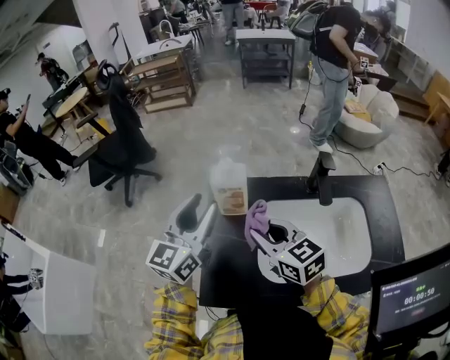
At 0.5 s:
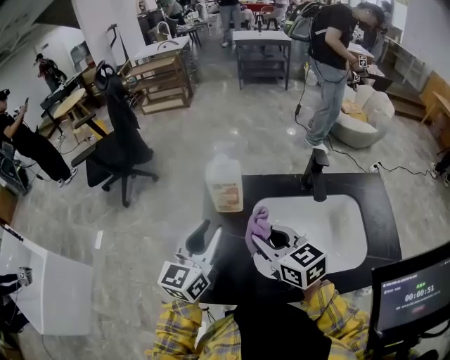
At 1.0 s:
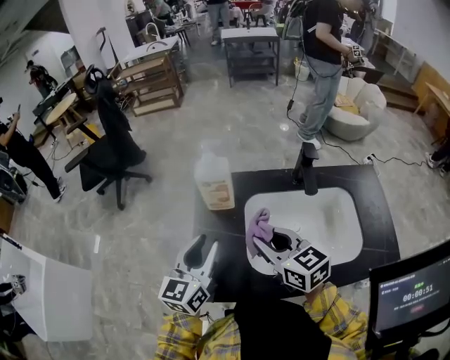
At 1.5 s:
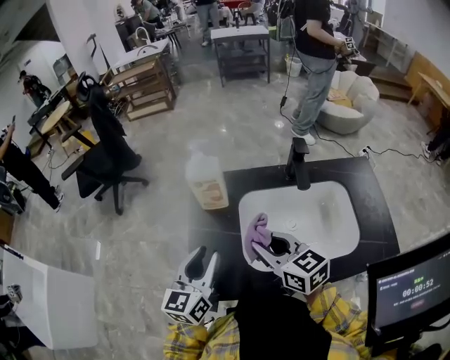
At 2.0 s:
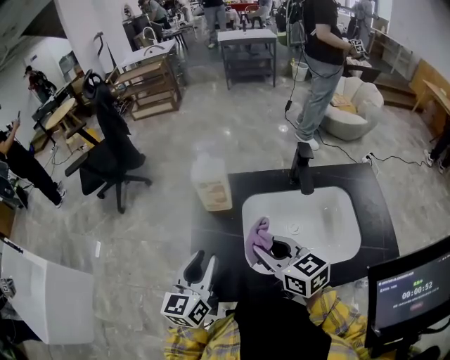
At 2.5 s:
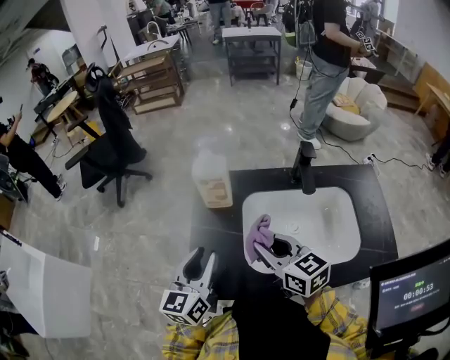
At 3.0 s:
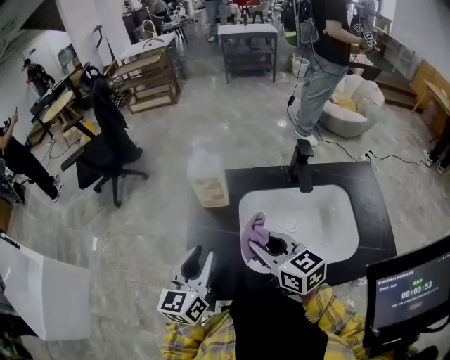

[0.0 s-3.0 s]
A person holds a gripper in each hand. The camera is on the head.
0.0 to 1.5 s: The right gripper is displaced backward by approximately 10 cm, while the left gripper goes some 15 cm backward and downward.
1.5 to 3.0 s: Neither gripper changes place.

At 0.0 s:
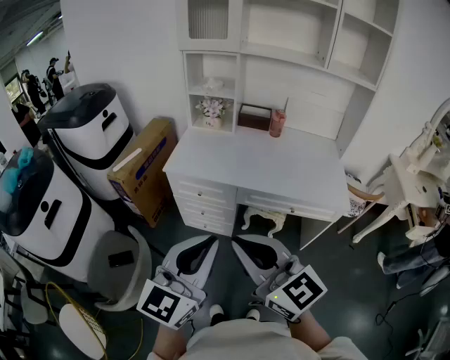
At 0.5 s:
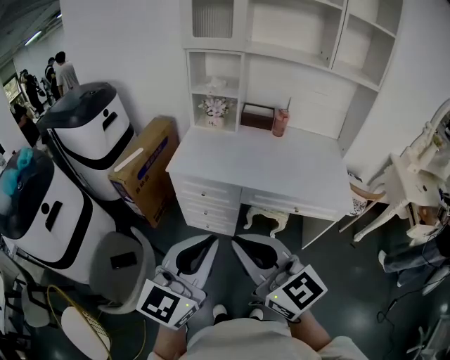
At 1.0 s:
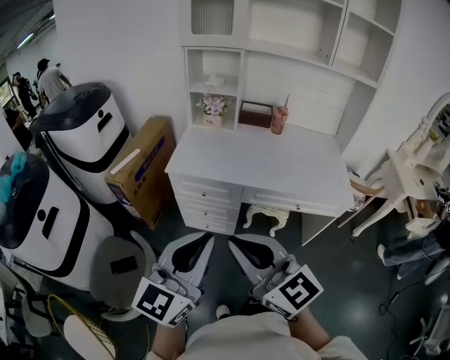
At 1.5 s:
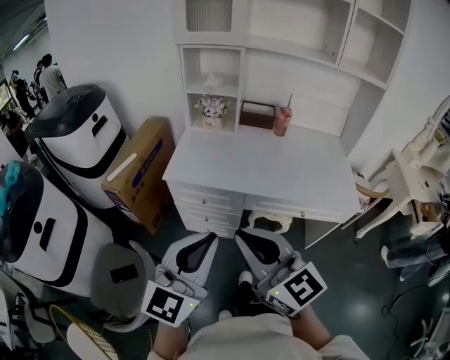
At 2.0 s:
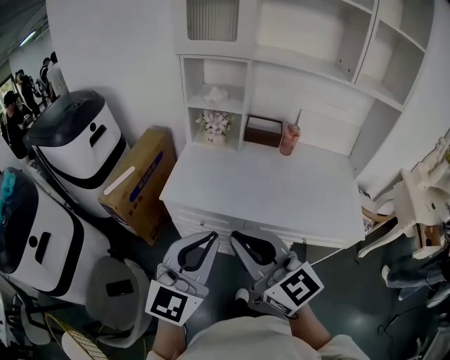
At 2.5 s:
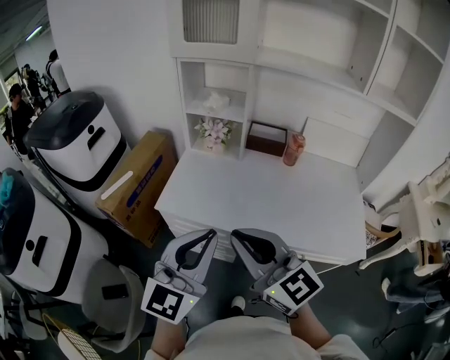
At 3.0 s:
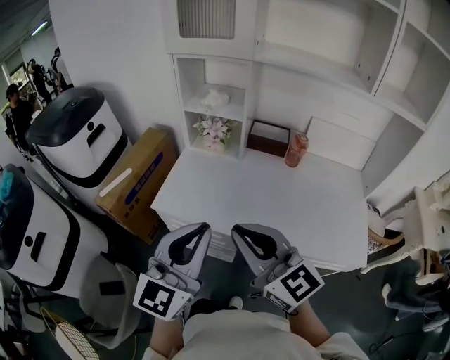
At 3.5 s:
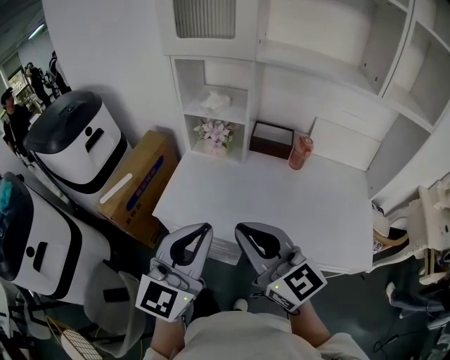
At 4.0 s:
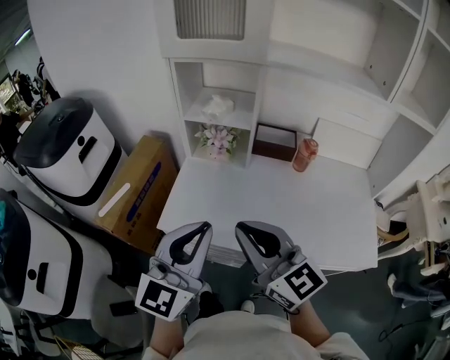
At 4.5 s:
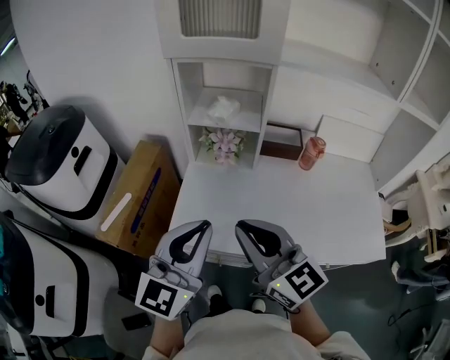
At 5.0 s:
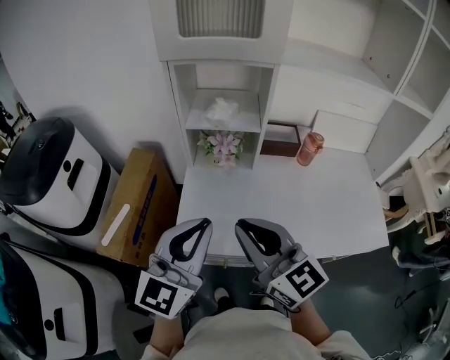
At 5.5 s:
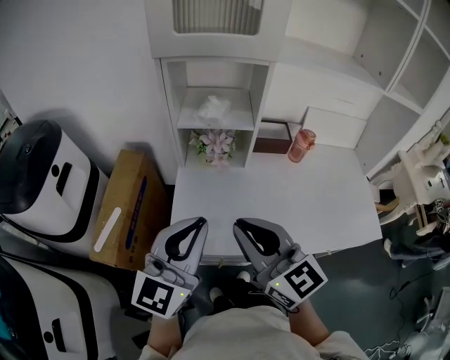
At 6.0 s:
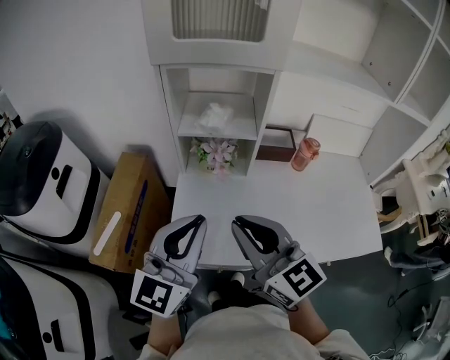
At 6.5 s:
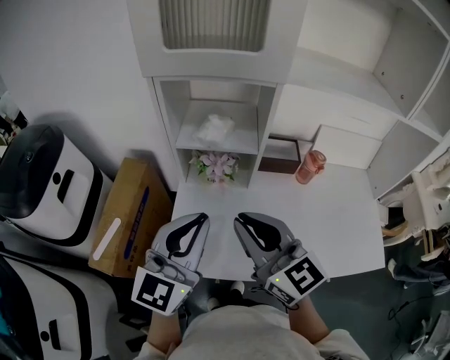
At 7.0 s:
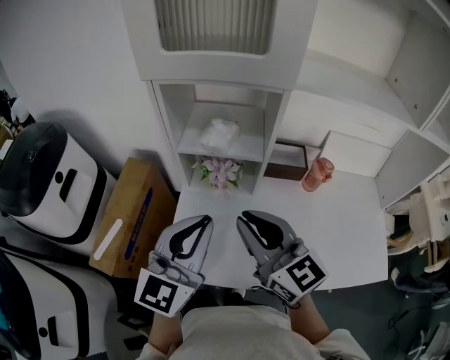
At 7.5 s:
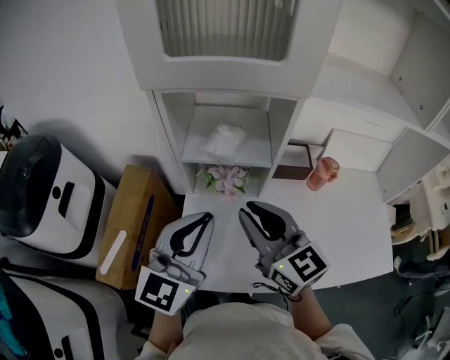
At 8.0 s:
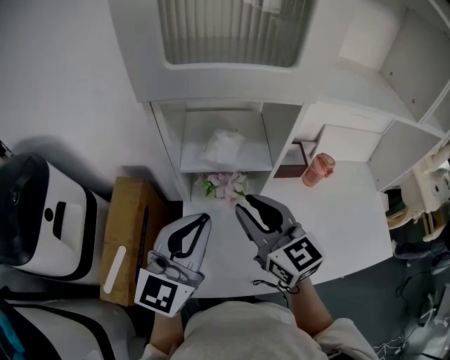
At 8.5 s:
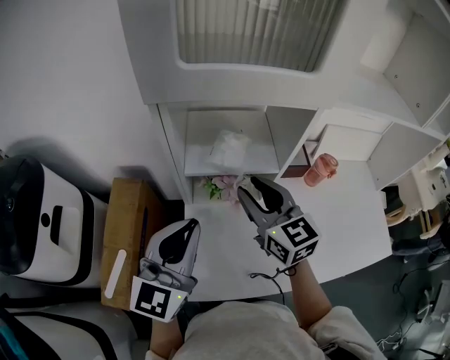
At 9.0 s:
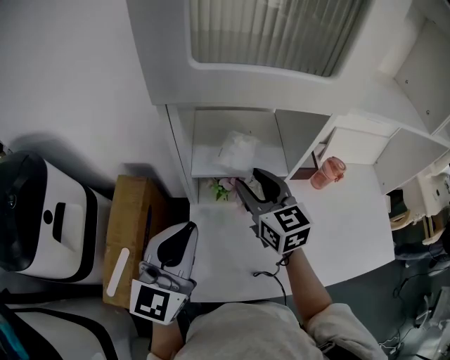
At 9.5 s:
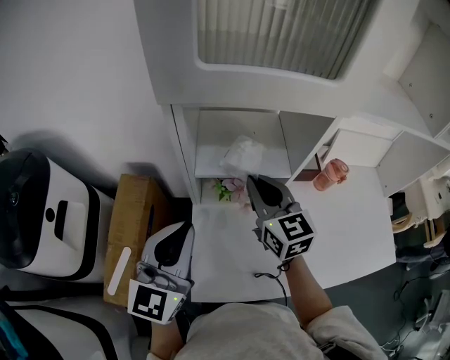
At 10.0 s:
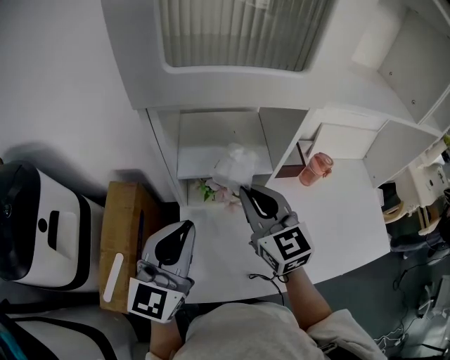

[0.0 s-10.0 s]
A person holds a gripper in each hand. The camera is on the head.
0.0 to 2.0 s: The two grippers go some 20 cm forward.
2.0 to 4.0 s: Both grippers travel together forward, approximately 20 cm.
4.0 to 6.0 s: Both grippers move forward and to the left, some 15 cm.
6.0 to 8.0 s: Both grippers travel together forward, about 15 cm.
8.0 to 10.0 s: The right gripper travels forward by some 5 cm, and closes.

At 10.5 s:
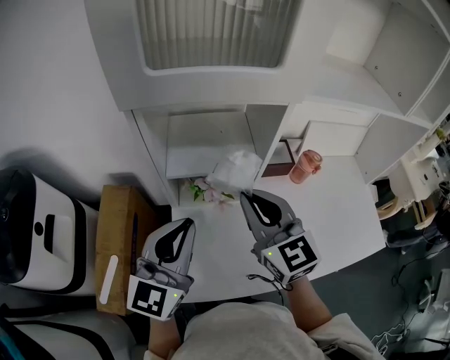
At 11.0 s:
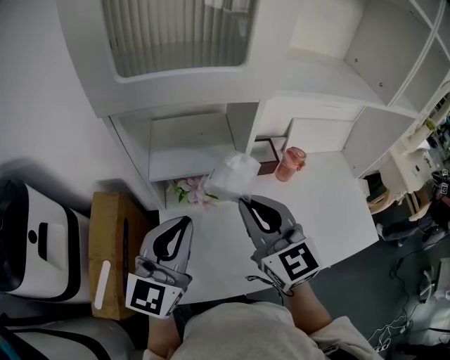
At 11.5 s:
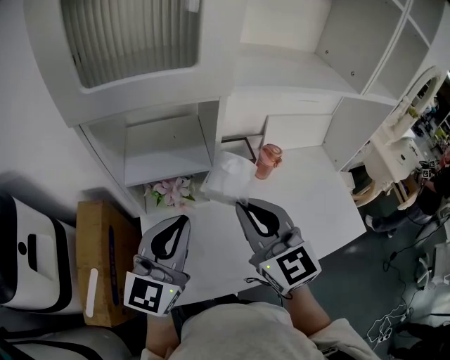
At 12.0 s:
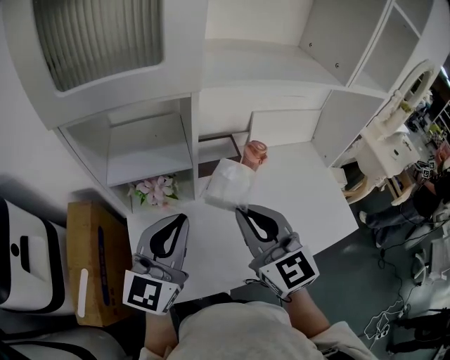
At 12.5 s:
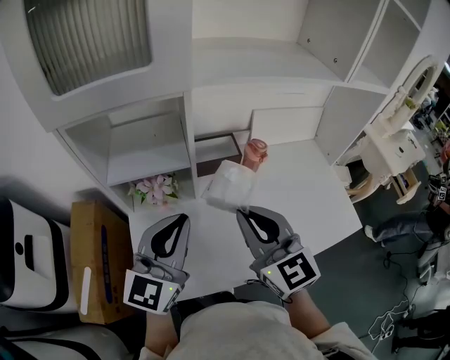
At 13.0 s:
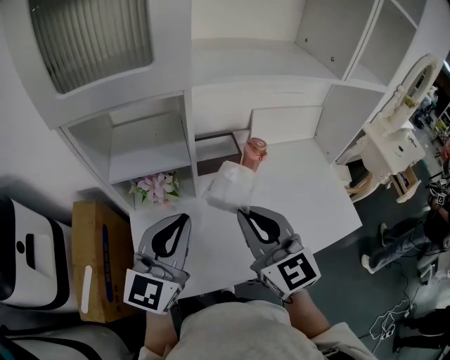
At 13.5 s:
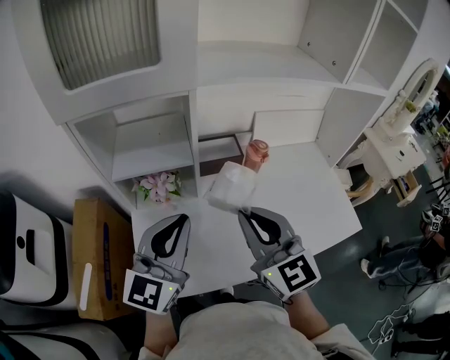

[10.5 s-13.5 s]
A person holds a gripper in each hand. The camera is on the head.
10.5 to 12.0 s: The right gripper heads to the right and backward, covering about 15 cm; the left gripper is displaced to the right by about 15 cm.
12.0 to 13.5 s: The grippers make only small movements.

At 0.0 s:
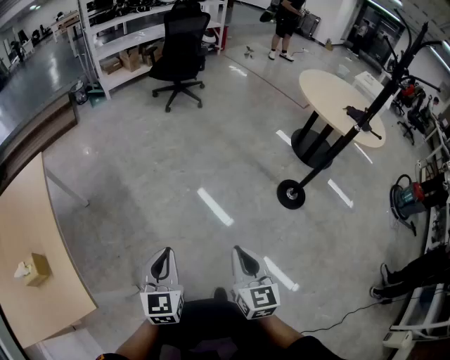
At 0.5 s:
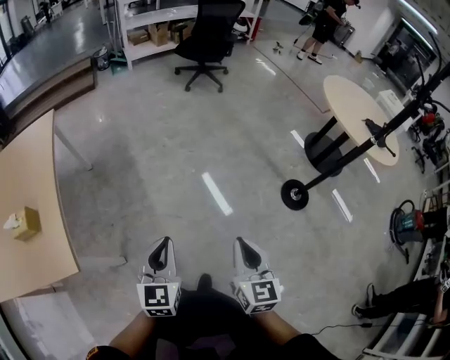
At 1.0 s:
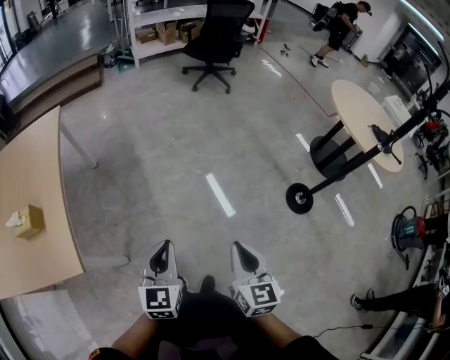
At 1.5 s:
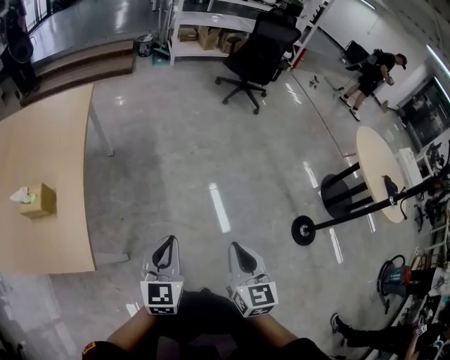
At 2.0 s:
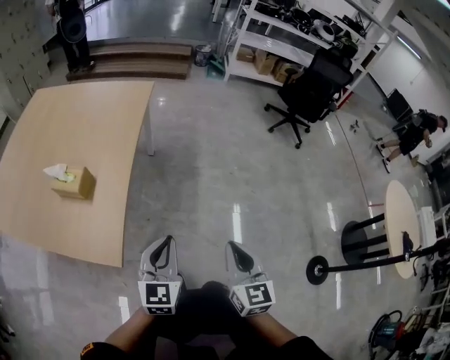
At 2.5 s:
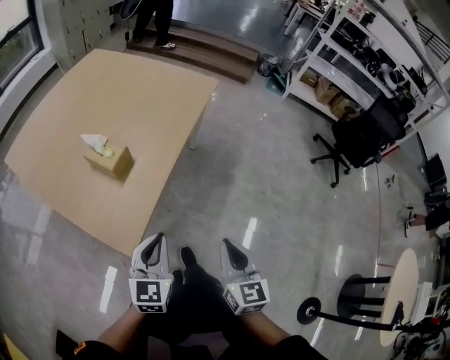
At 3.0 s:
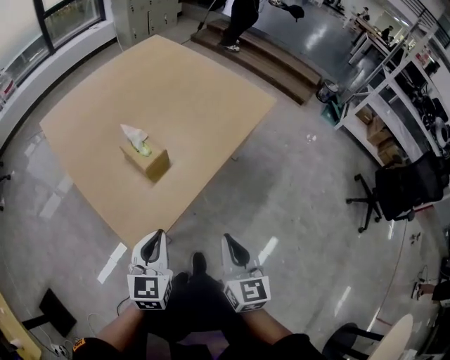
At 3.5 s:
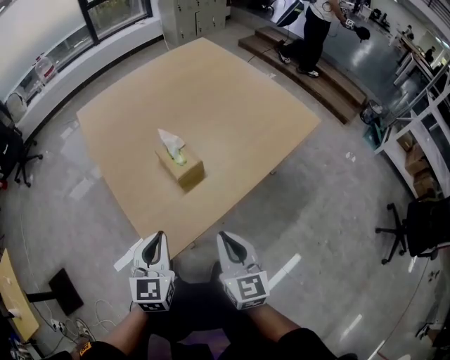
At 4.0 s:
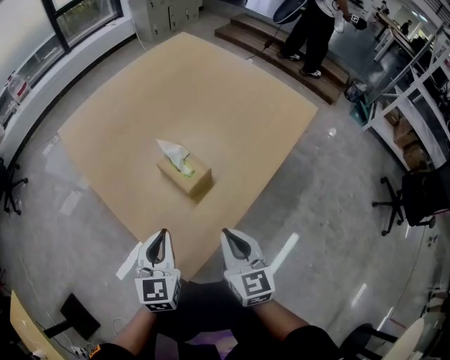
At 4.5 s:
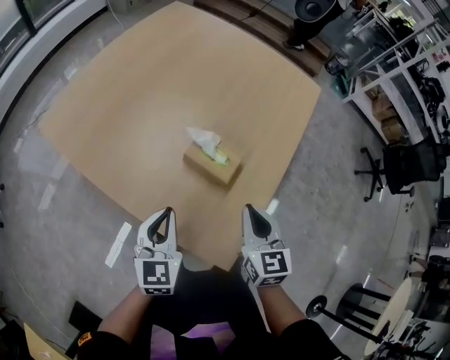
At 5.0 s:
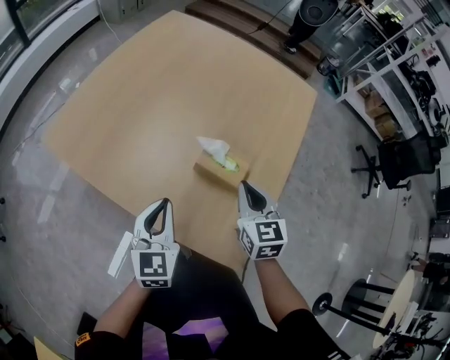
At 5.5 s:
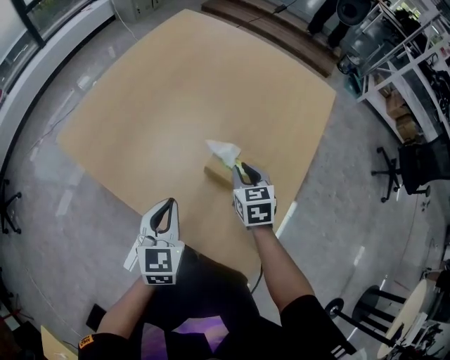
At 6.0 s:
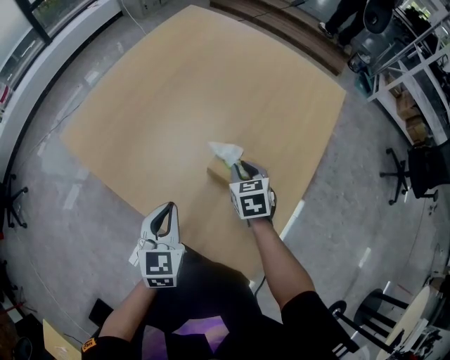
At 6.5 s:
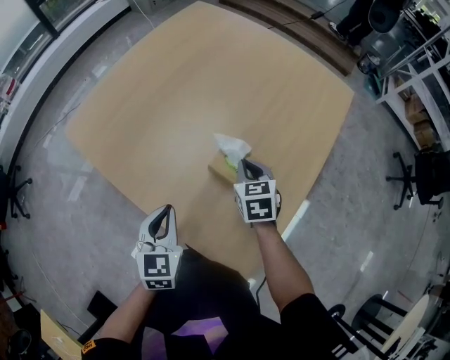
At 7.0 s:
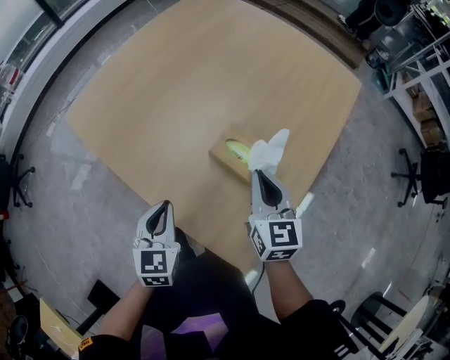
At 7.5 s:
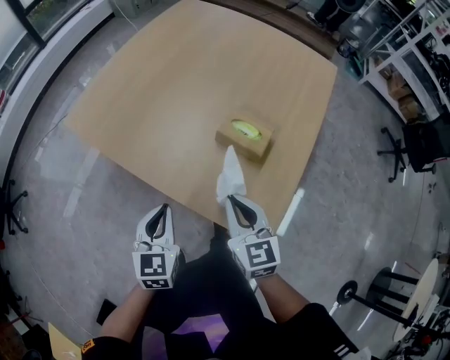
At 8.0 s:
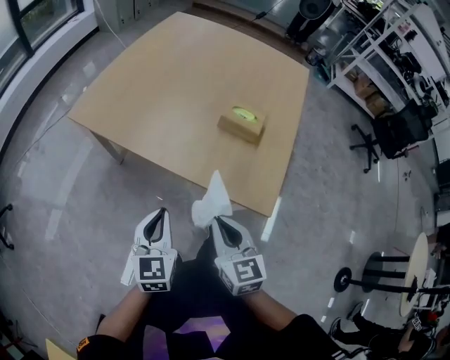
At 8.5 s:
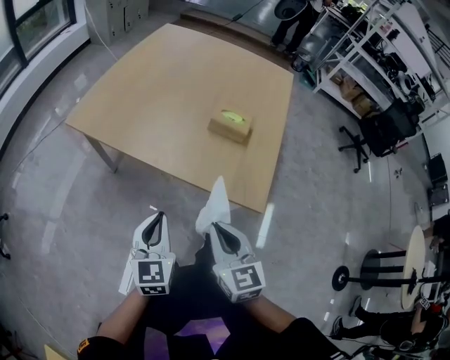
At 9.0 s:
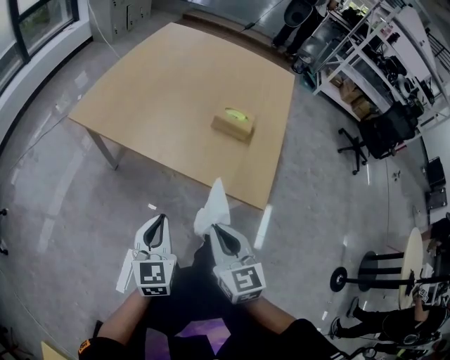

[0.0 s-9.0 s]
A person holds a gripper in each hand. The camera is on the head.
0.0 to 2.0 s: The left gripper moves approximately 25 cm, and changes its angle by about 30 degrees; the right gripper moves some 30 cm, and turns by some 40 degrees.
2.0 to 4.5 s: Both grippers are carried roughly 40 cm. The right gripper changes its angle by roughly 30 degrees. Meanwhile the left gripper swivels approximately 30 degrees.
4.5 to 7.0 s: The left gripper shifts about 5 cm to the left. The right gripper is displaced forward by approximately 10 cm.
7.0 to 9.0 s: The right gripper moves backward and to the left, roughly 40 cm. Meanwhile the left gripper is displaced backward and to the left by roughly 25 cm, and swivels some 20 degrees.

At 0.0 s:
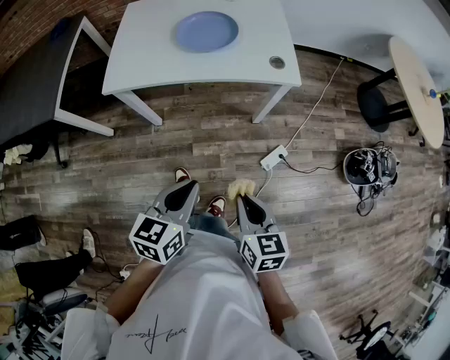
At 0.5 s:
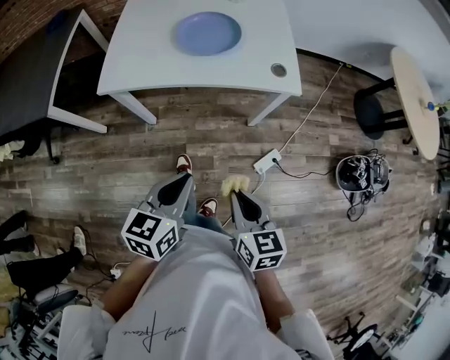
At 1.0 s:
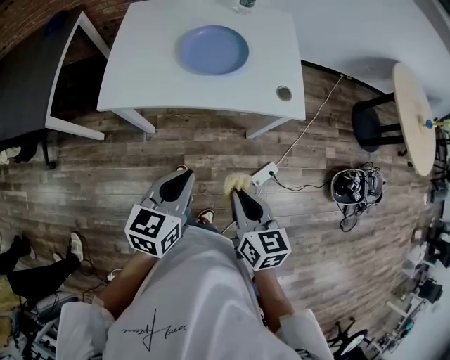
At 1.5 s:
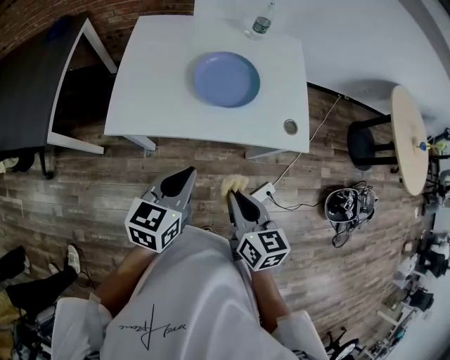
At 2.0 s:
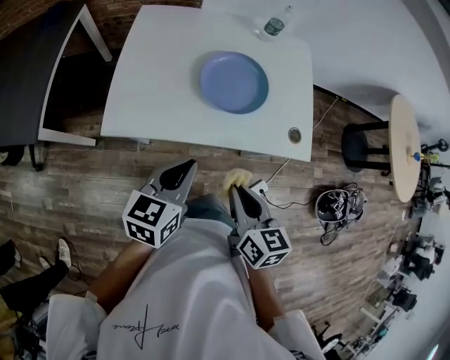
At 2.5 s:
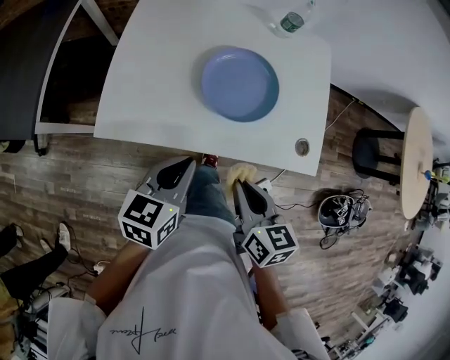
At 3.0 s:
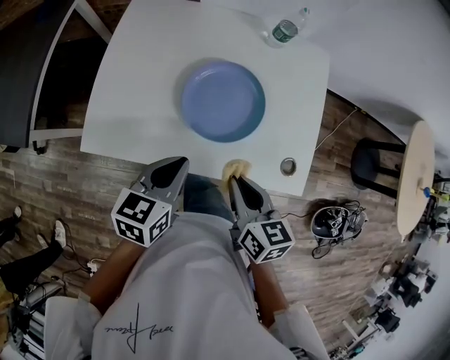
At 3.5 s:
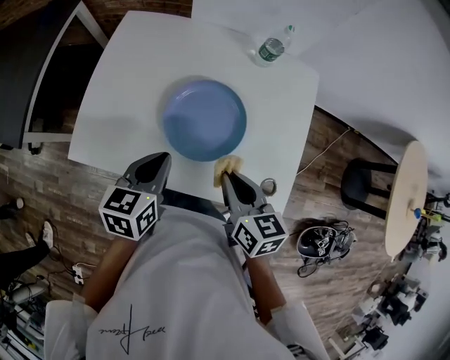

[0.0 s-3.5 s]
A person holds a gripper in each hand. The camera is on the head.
0.0 to 2.0 s: The two grippers go approximately 30 cm forward and to the left.
2.0 to 3.5 s: The right gripper heads forward and to the right, covering some 25 cm. Meanwhile the left gripper heads forward, covering about 15 cm.
